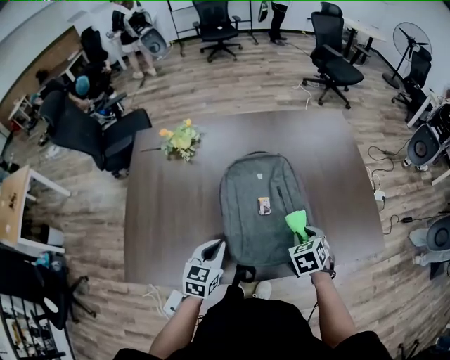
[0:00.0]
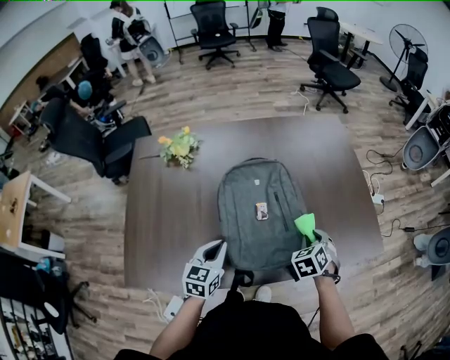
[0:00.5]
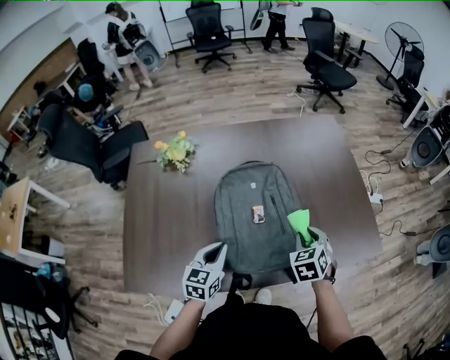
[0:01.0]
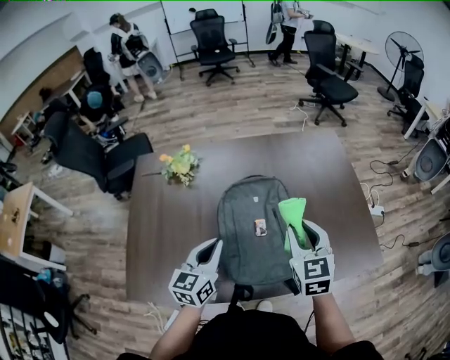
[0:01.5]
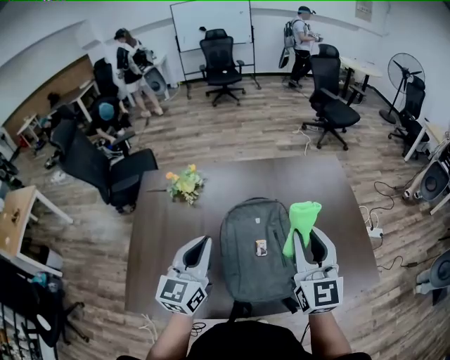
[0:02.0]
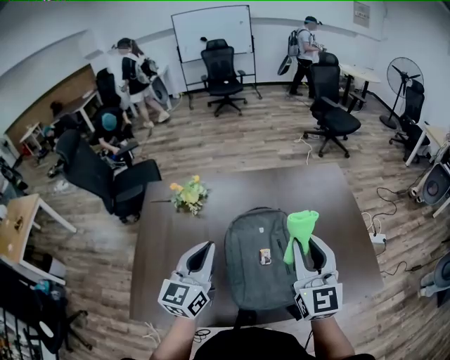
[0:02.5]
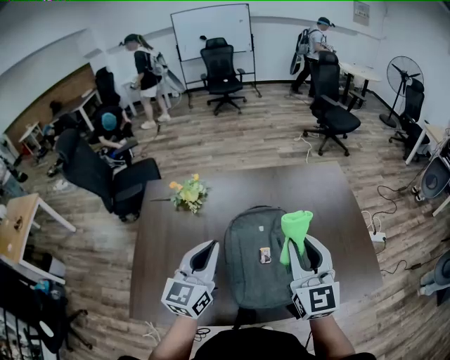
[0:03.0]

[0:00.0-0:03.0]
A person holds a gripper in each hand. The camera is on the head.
0:00.0 to 0:01.5: The left gripper heads upward and forward, covering roughly 15 cm. The right gripper heads upward, covering about 20 cm, and angles its fingers upward, by some 30 degrees.
0:01.5 to 0:03.0: Both grippers travel together upward, about 10 cm. The right gripper changes its angle by some 20 degrees.

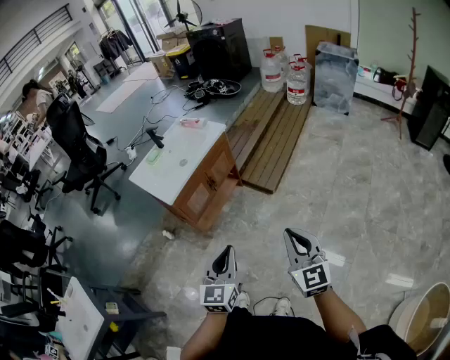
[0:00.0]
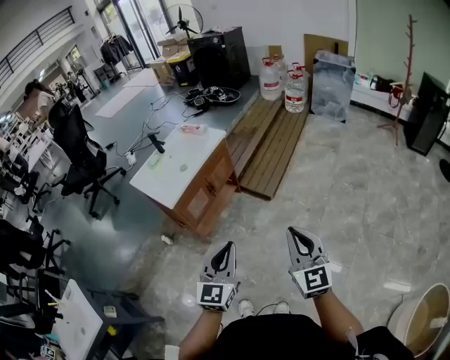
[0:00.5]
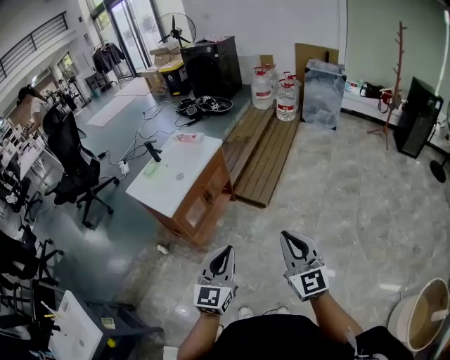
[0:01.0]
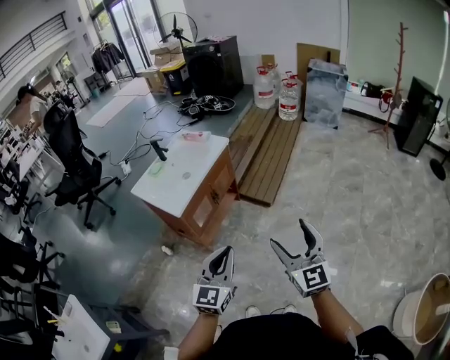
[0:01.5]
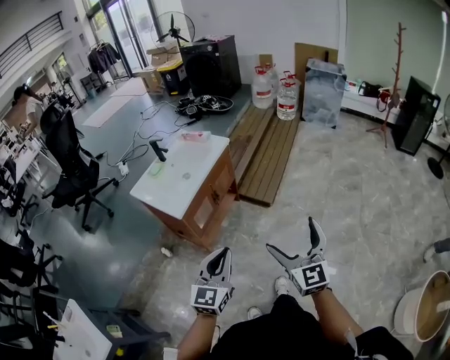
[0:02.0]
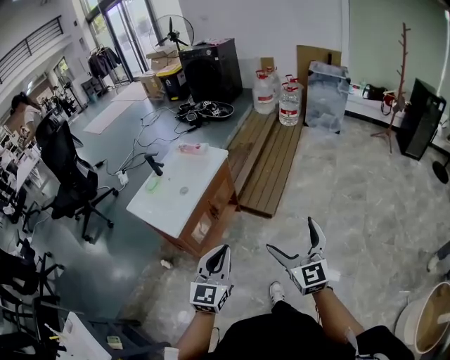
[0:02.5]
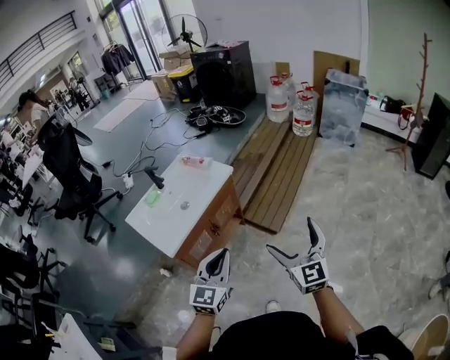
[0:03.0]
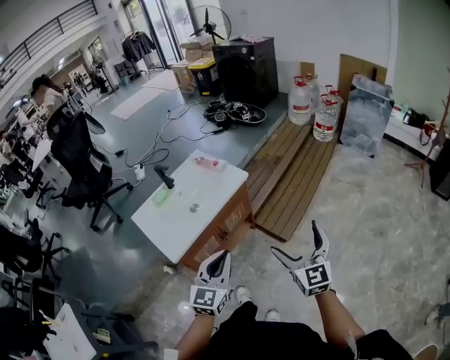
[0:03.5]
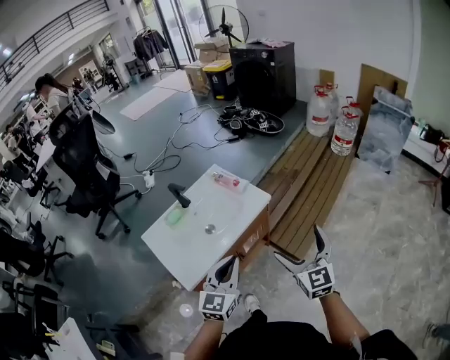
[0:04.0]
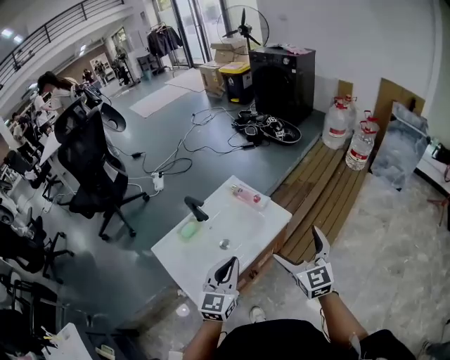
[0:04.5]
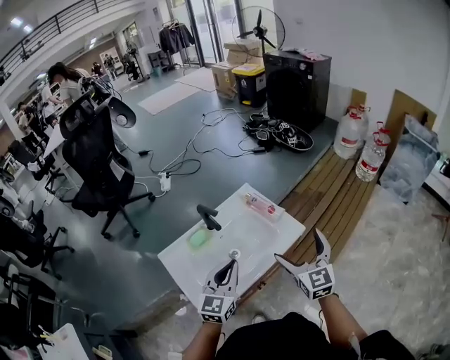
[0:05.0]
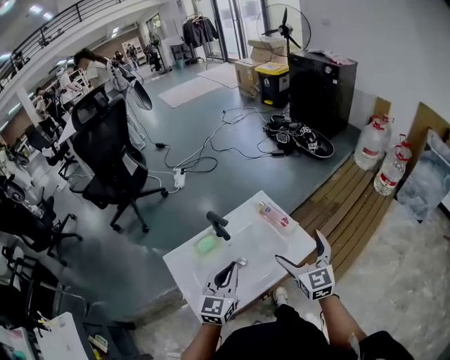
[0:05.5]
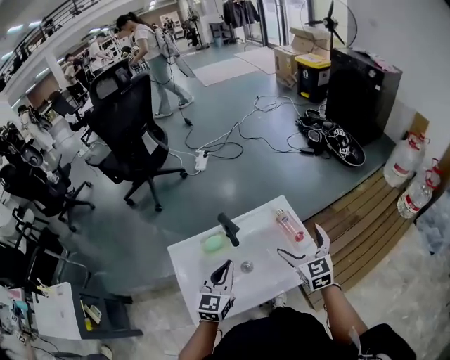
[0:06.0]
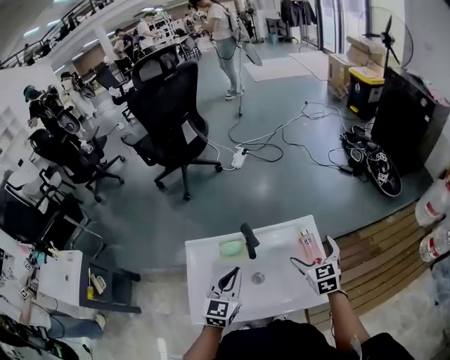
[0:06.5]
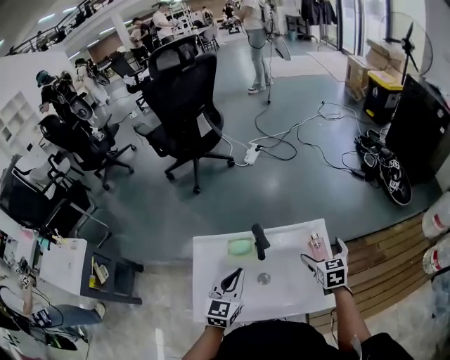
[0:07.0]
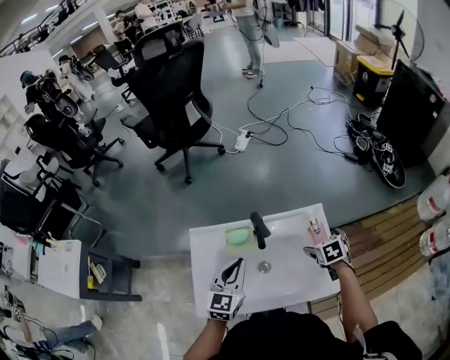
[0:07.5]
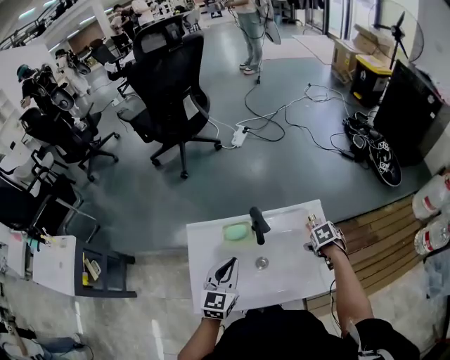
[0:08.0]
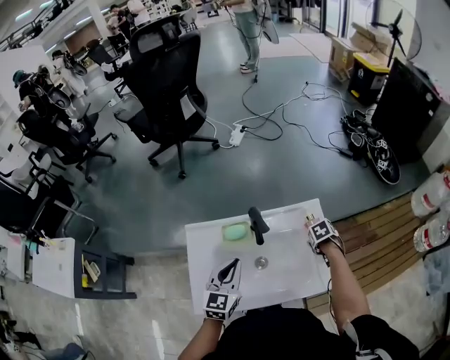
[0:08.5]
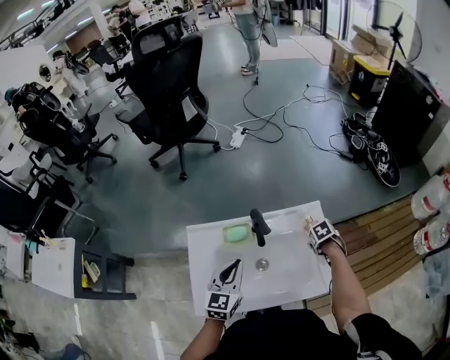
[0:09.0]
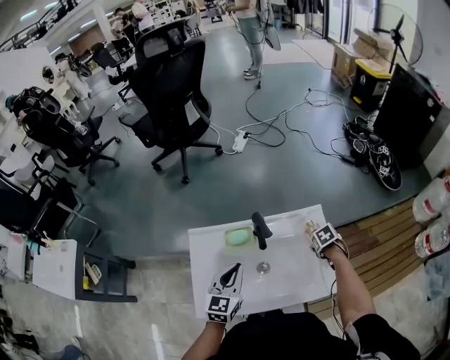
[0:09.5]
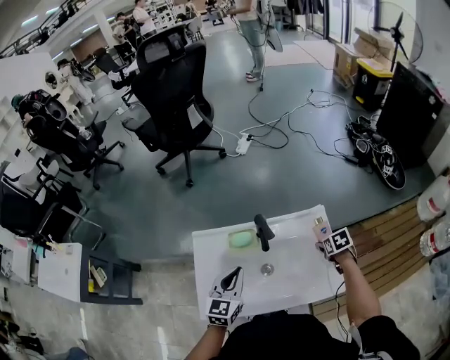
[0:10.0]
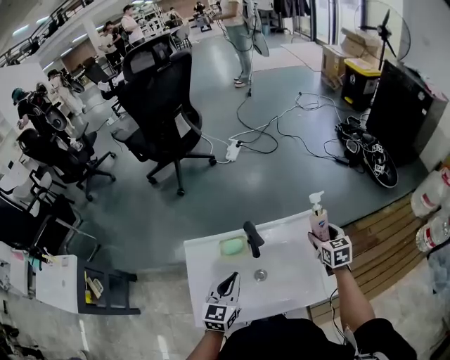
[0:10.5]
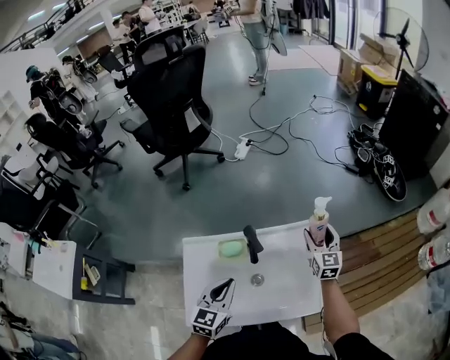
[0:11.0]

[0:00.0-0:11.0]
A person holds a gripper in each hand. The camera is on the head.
0:00.0 to 0:02.0: The two grippers go about 15 cm to the left. The right gripper opens.
0:02.0 to 0:03.5: The two grippers go approximately 35 cm forward.
0:03.5 to 0:05.5: The pair of grippers is taken forward and to the left, some 50 cm.
0:05.5 to 0:07.5: The left gripper shifts by roughly 15 cm, and turns by about 30 degrees, while the right gripper moves some 35 cm, and angles its fingers downward, by roughly 50 degrees.
0:07.5 to 0:09.0: The right gripper goes roughly 10 cm downward, turns by some 20 degrees, and closes up.
0:09.0 to 0:11.0: The right gripper moves upward, about 15 cm, and tilts its fingers some 70 degrees upward.

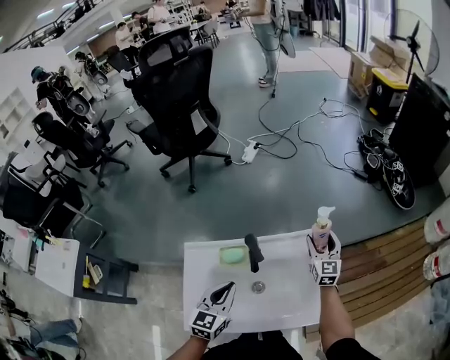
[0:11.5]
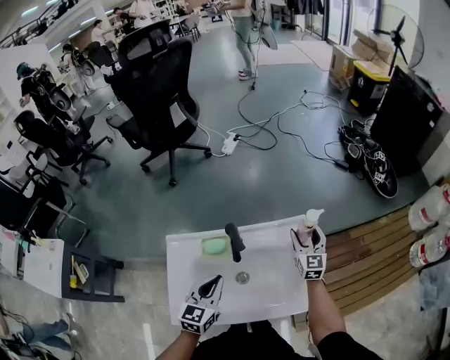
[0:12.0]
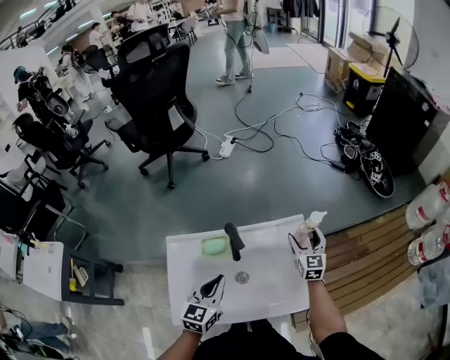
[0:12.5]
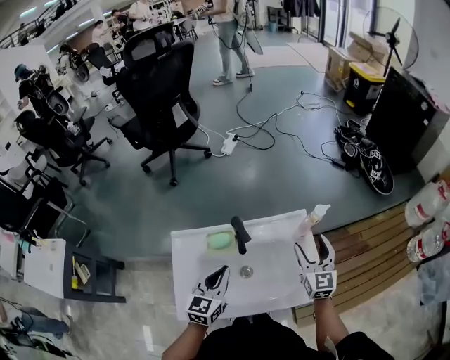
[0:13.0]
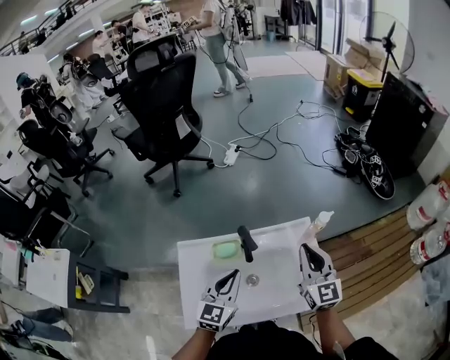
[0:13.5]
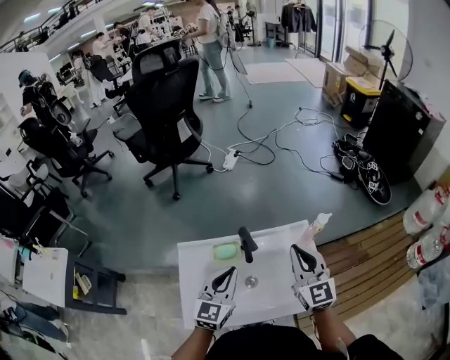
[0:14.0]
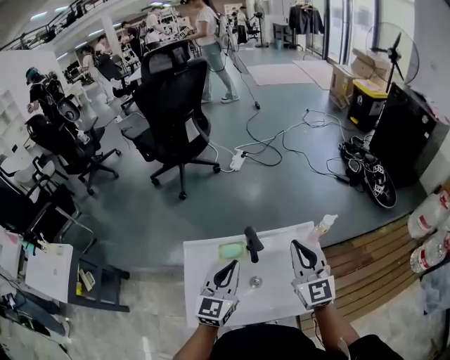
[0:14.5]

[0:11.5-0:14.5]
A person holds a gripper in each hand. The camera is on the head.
0:11.5 to 0:13.0: The right gripper is displaced backward and upward by approximately 15 cm.
0:13.0 to 0:14.5: The right gripper is displaced upward and to the left by some 20 cm, and closes its fingers. The left gripper heads upward, covering some 10 cm.

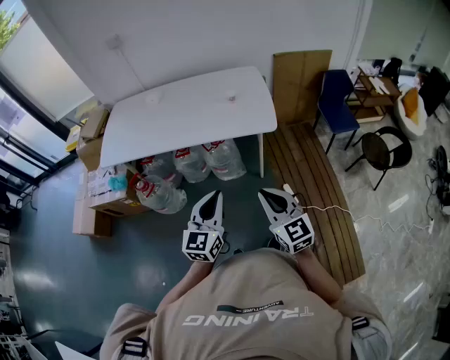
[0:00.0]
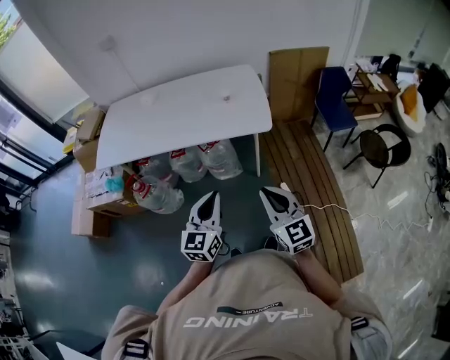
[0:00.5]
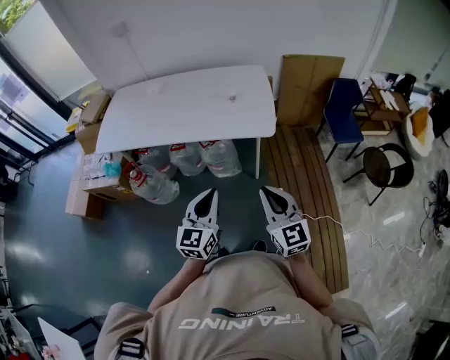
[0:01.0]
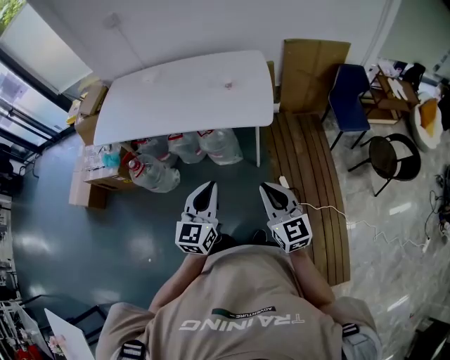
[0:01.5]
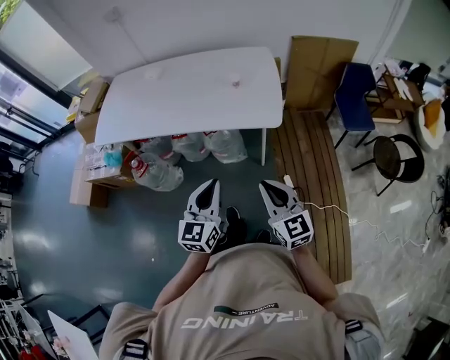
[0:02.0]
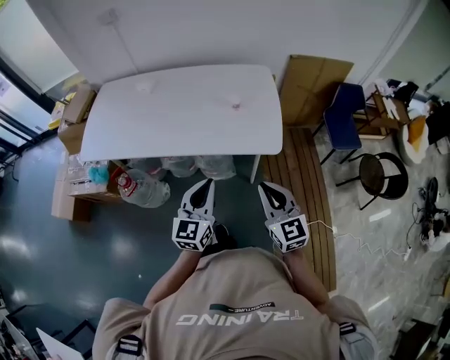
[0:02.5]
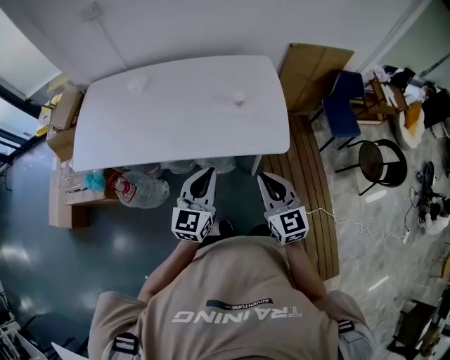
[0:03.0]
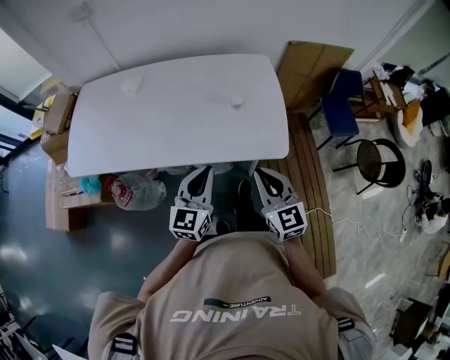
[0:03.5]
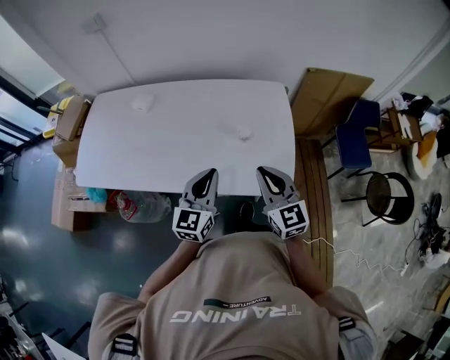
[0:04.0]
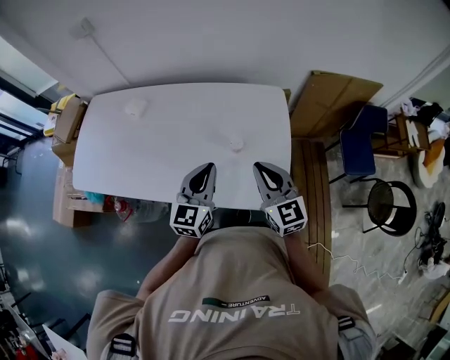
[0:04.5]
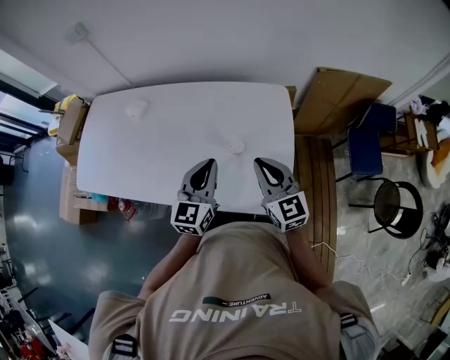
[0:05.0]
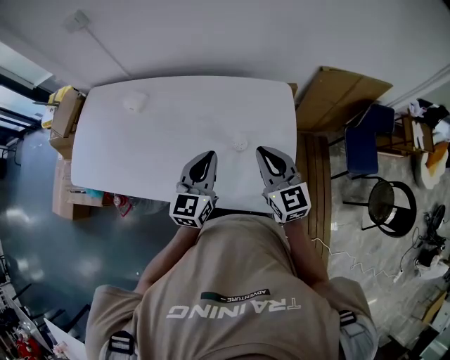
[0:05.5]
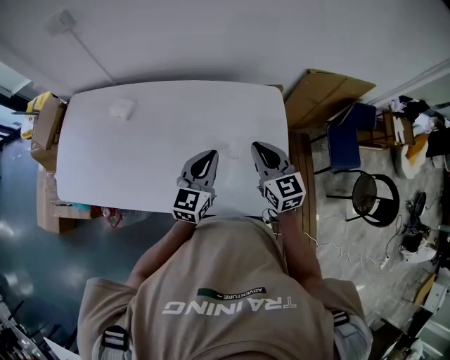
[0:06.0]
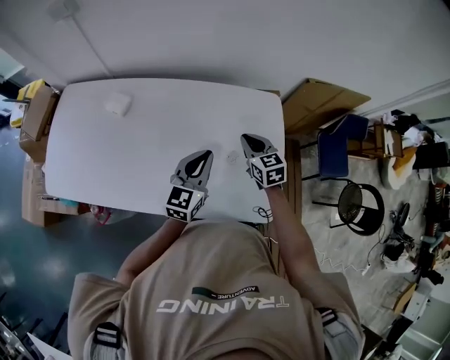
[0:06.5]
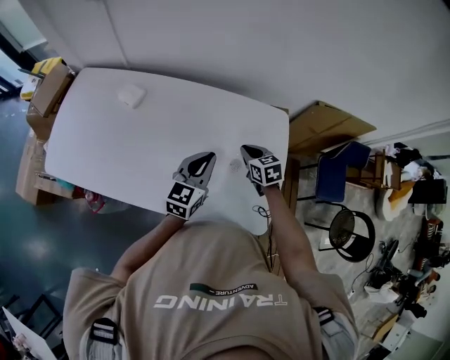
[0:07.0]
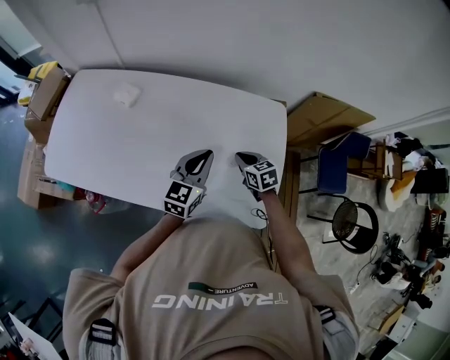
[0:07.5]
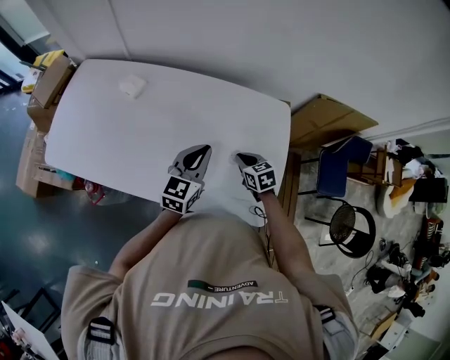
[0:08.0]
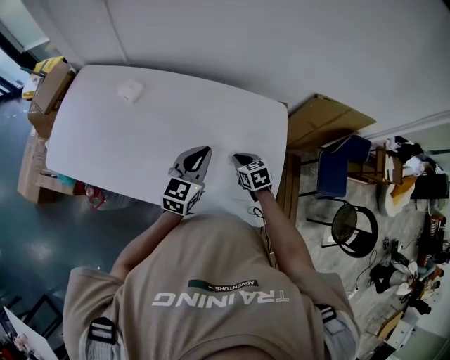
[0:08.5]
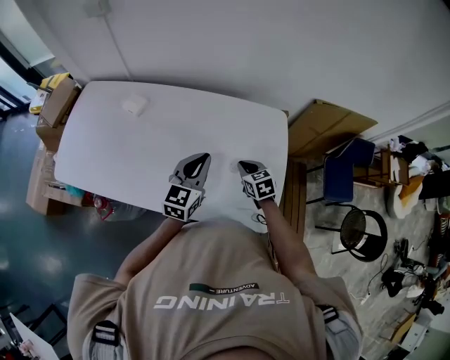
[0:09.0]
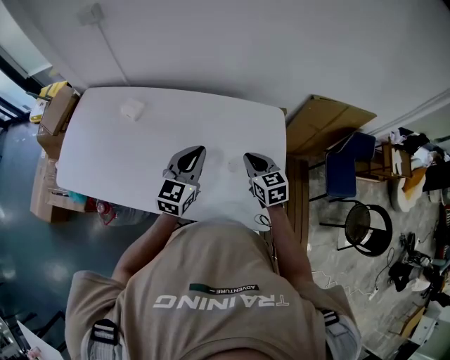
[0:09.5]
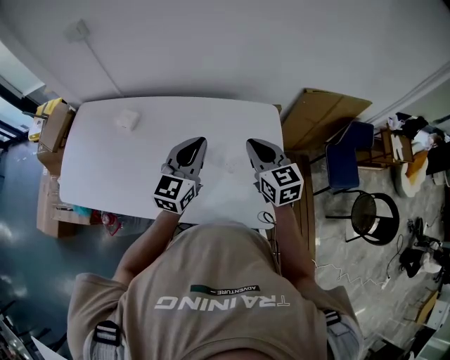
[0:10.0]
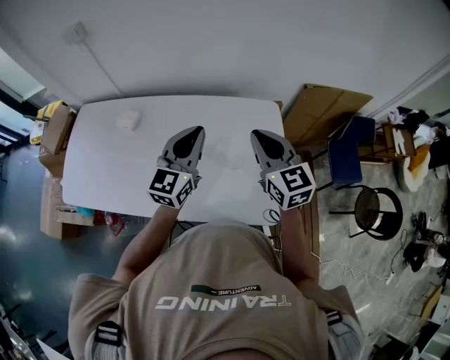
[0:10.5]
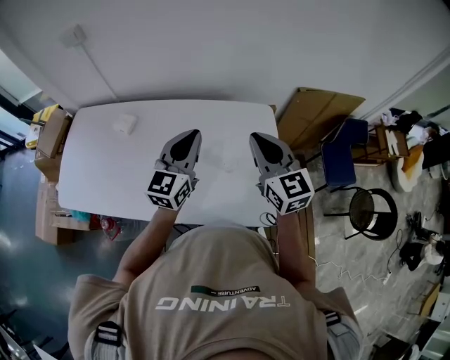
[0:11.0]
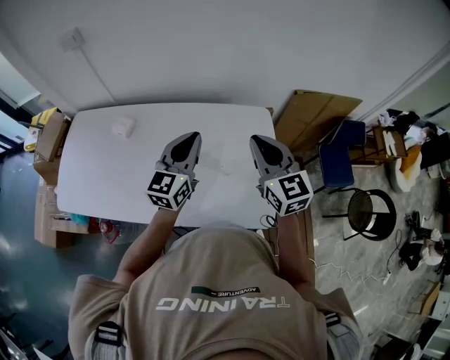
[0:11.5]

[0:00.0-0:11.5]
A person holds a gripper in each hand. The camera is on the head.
0:00.0 to 0:02.0: Both grippers travel together forward and to the right, roughly 10 cm.
0:02.0 to 0:04.0: Both grippers travel together forward, approximately 35 cm.
0:04.0 to 0:06.0: Both grippers move forward, about 20 cm.
0:06.0 to 0:07.5: The right gripper shifts approximately 15 cm downward, and turns by some 30 degrees.
0:07.5 to 0:09.5: The left gripper moves about 5 cm. Meanwhile the right gripper travels upward by about 10 cm.
0:09.5 to 0:11.5: The right gripper moves upward, roughly 20 cm, and turns by some 20 degrees, while the left gripper heads upward, covering approximately 10 cm.
